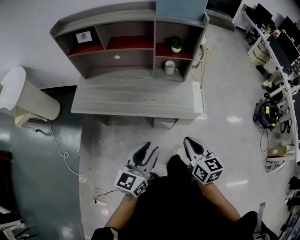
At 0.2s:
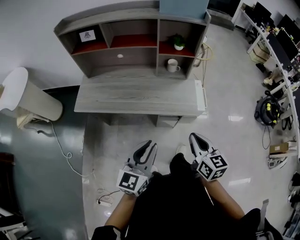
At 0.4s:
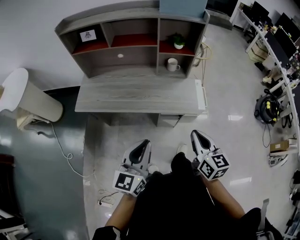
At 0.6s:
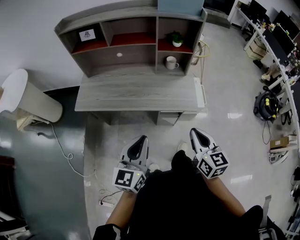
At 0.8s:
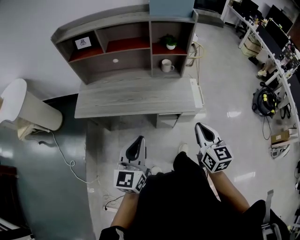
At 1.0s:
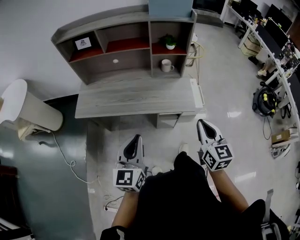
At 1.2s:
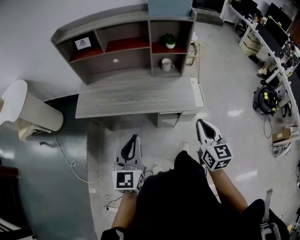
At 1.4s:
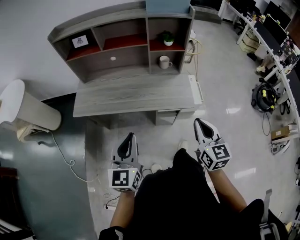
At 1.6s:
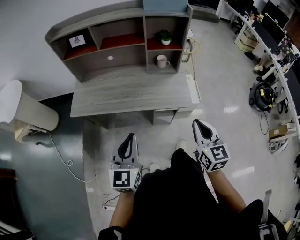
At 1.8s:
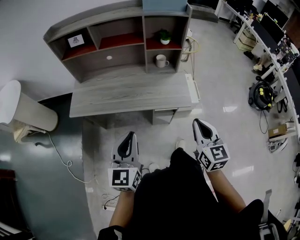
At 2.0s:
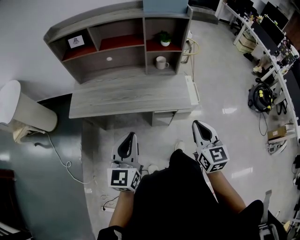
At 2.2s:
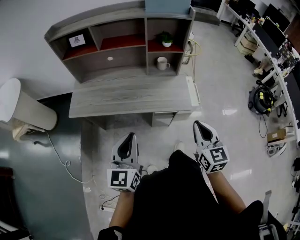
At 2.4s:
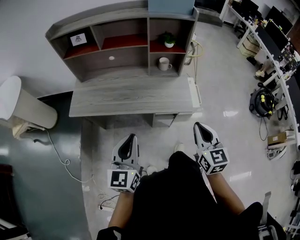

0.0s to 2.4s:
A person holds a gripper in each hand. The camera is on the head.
0.0s to 1.2s: The left gripper shifts some 10 cm to the left, and swivels about 20 degrees.
1.2s to 2.4s: There are only small adjustments of the grippers.

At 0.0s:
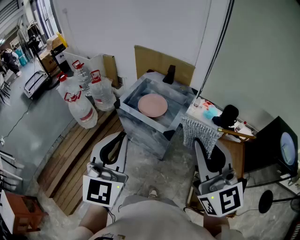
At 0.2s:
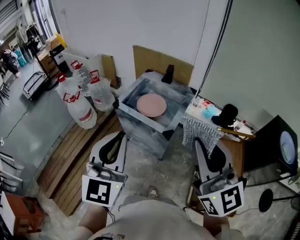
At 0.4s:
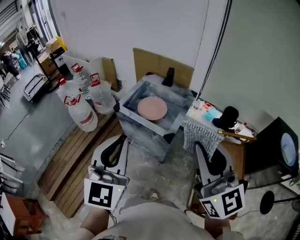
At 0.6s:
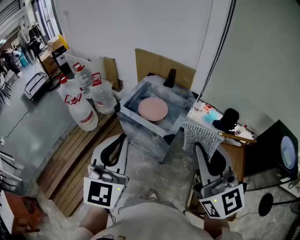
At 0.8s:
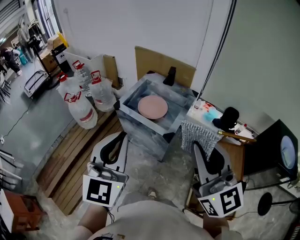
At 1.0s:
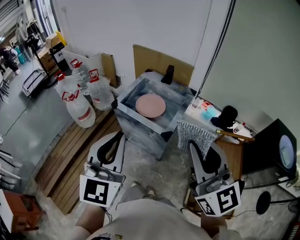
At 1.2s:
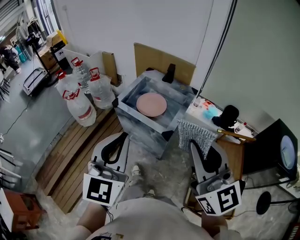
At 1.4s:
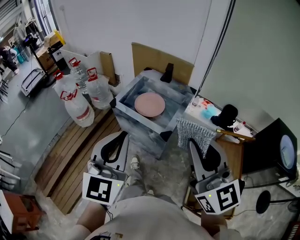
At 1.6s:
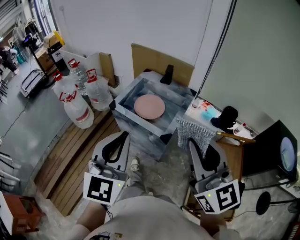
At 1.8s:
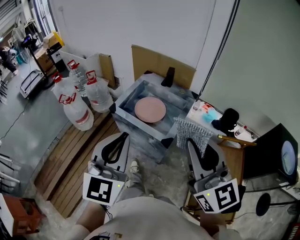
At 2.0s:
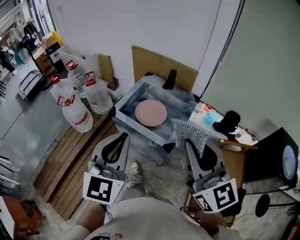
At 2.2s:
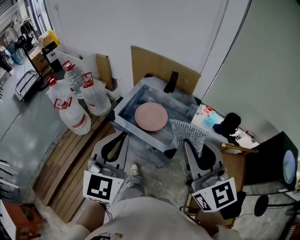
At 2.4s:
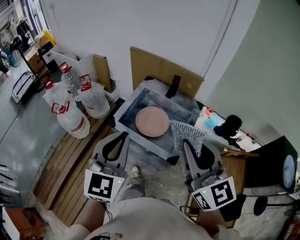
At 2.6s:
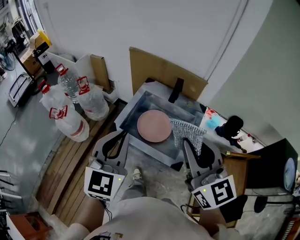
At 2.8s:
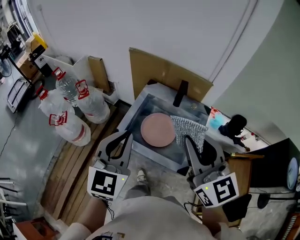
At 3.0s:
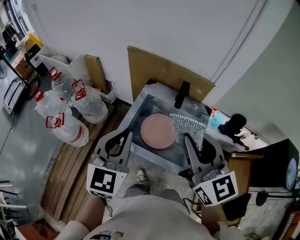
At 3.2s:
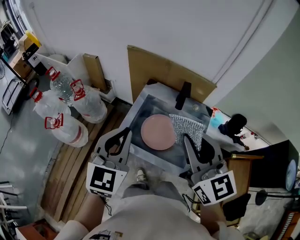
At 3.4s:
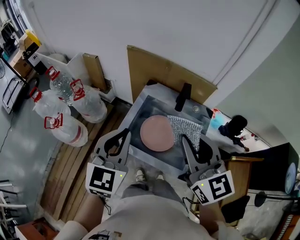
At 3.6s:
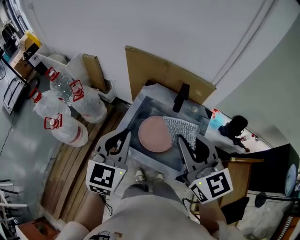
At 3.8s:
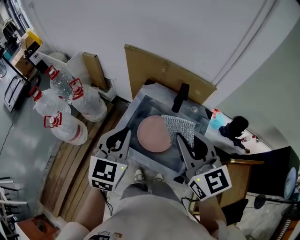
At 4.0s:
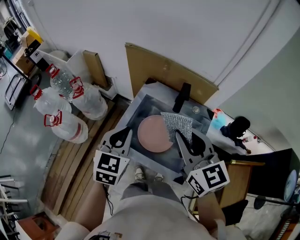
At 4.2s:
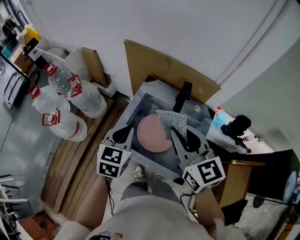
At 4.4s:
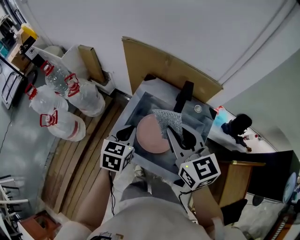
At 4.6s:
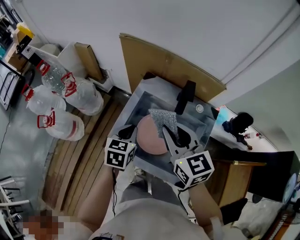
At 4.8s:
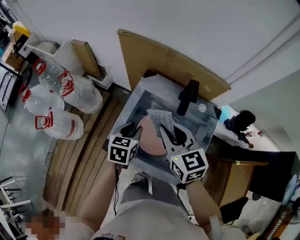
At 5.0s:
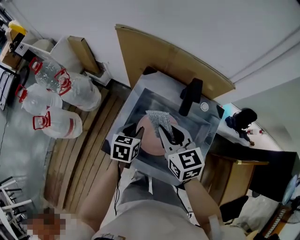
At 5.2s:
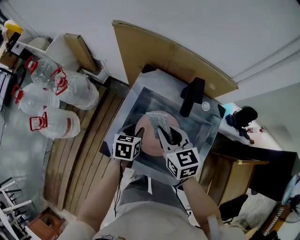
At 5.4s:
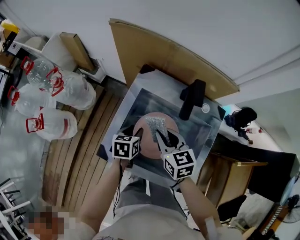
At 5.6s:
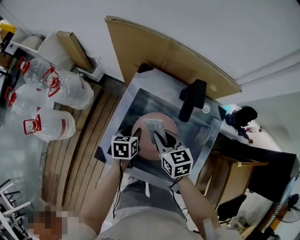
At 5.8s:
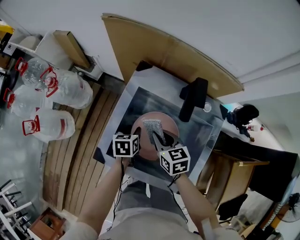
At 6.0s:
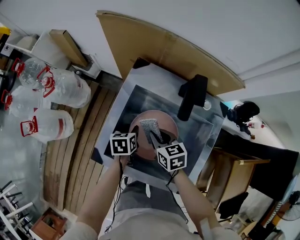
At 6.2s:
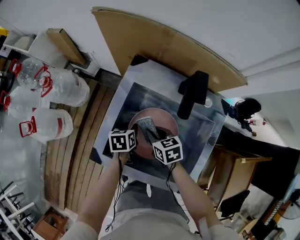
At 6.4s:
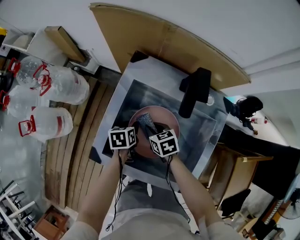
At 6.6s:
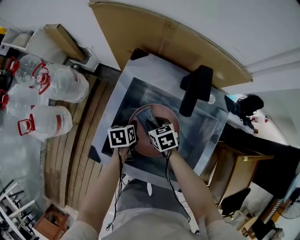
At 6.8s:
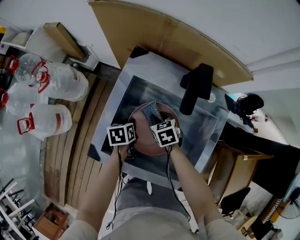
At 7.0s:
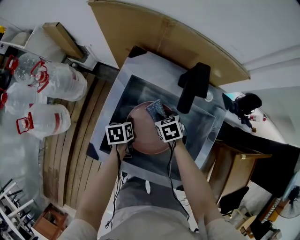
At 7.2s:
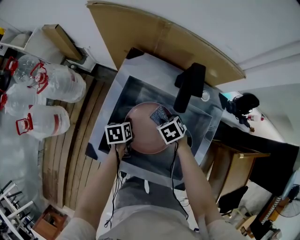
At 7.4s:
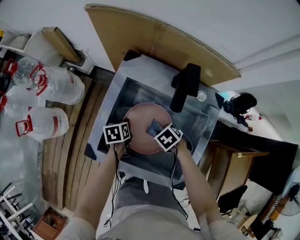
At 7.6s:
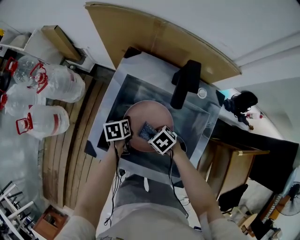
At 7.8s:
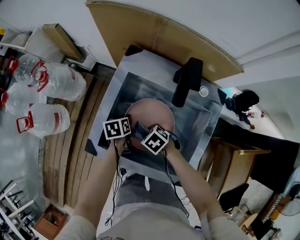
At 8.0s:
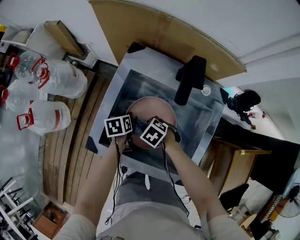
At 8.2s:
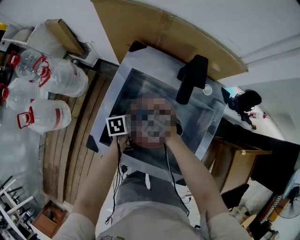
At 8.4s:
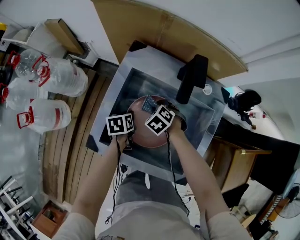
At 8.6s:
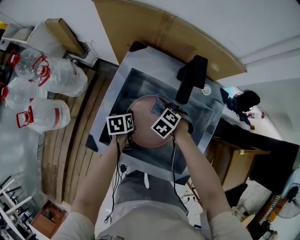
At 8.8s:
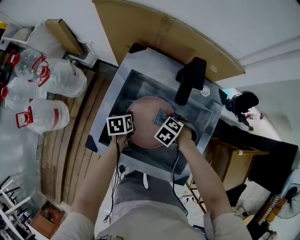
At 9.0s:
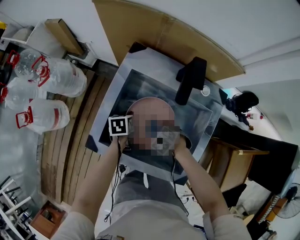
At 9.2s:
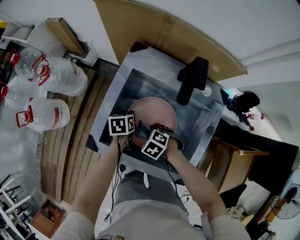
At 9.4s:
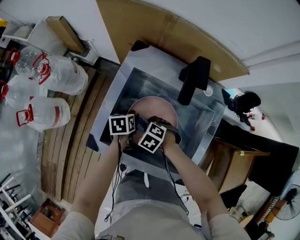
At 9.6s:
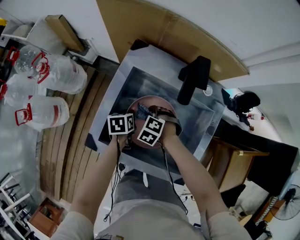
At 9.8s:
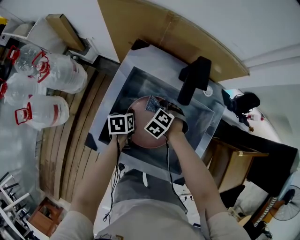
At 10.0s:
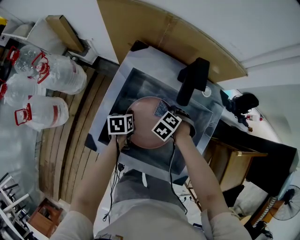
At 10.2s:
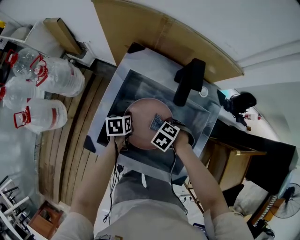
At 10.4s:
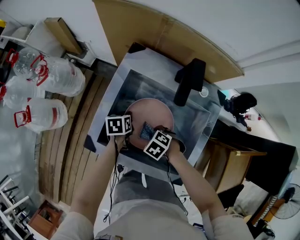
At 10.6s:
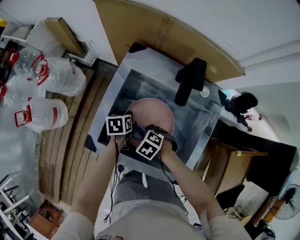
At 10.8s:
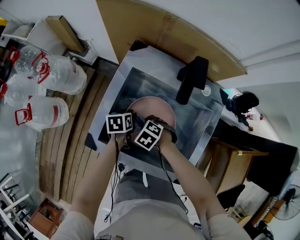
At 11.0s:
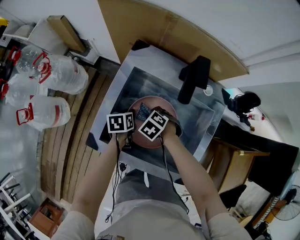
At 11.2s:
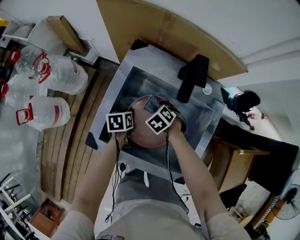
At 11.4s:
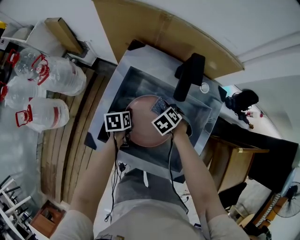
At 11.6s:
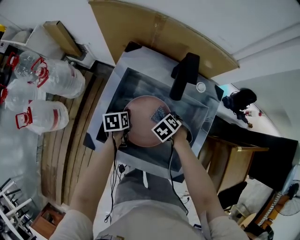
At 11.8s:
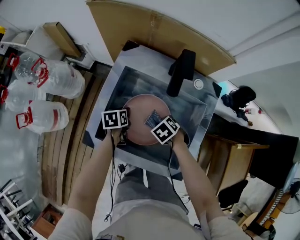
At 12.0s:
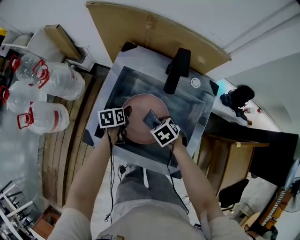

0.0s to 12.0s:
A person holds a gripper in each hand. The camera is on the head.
0.0s to 1.6s: The left gripper shifts by approximately 5 cm; the right gripper shifts by roughly 5 cm.
1.6s to 3.0s: Both grippers travel together forward, some 35 cm.
3.0s to 4.4s: The left gripper heads downward and forward, covering about 25 cm, and changes its angle by about 30 degrees, while the right gripper heads forward and downward, covering about 20 cm.
4.4s to 6.0s: Both grippers travel together downward, approximately 30 cm. The left gripper changes its angle by about 30 degrees, and opens its fingers, while the right gripper changes its angle by some 30 degrees.
6.0s to 7.6s: The left gripper closes its fingers. The right gripper heads downward, covering some 10 cm, and changes its angle by about 40 degrees.
7.6s to 9.0s: The right gripper swivels about 20 degrees.
10.4s to 12.0s: The right gripper swivels roughly 20 degrees, while the left gripper opens its fingers.

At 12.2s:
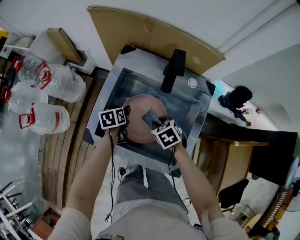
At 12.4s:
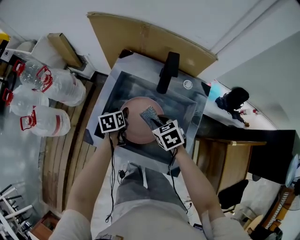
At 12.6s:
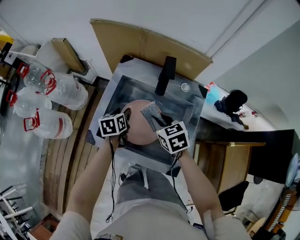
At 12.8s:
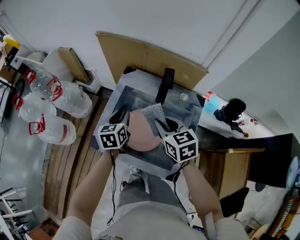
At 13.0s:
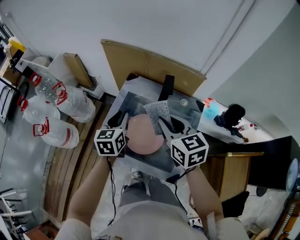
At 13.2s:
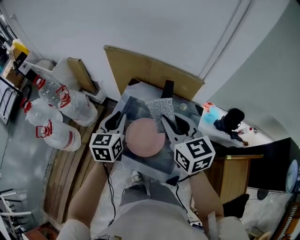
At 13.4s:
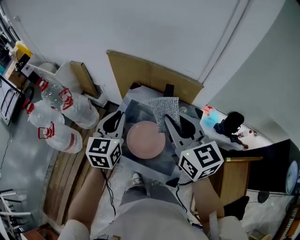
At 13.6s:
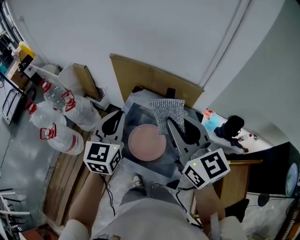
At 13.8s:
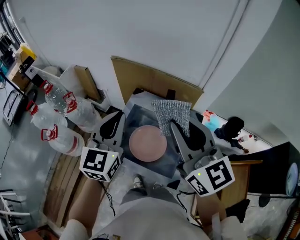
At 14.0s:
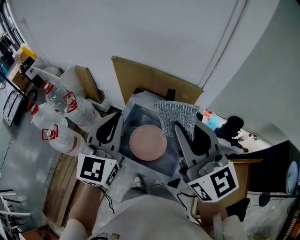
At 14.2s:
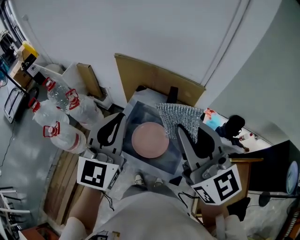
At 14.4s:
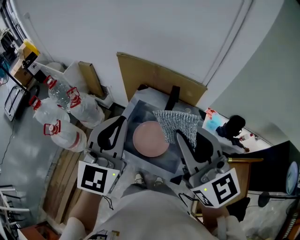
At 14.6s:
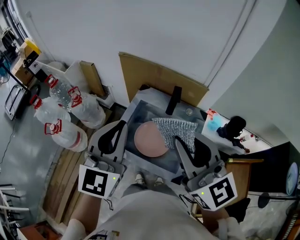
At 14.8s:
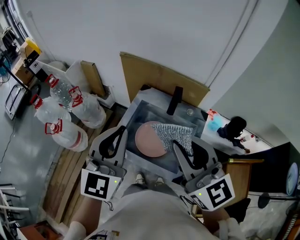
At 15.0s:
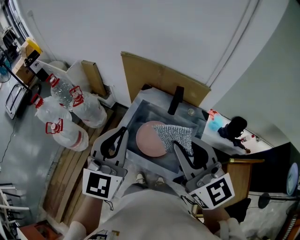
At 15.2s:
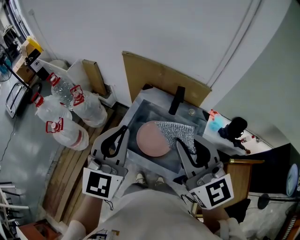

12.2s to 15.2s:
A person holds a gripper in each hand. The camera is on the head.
12.2s to 13.8s: Both grippers move upward, approximately 50 cm. The left gripper tilts its fingers about 50 degrees upward, and closes. Meanwhile the right gripper tips its fingers upward by about 70 degrees.
13.8s to 15.2s: The two grippers go some 10 cm backward.

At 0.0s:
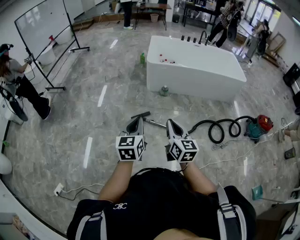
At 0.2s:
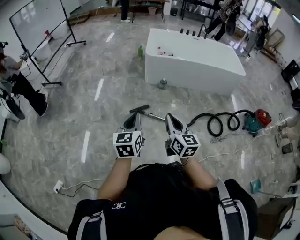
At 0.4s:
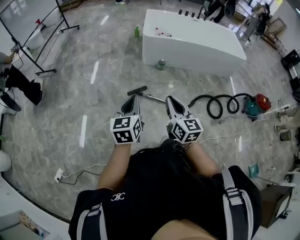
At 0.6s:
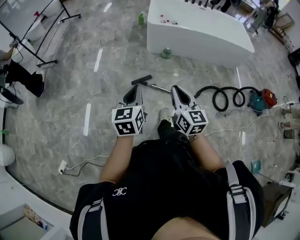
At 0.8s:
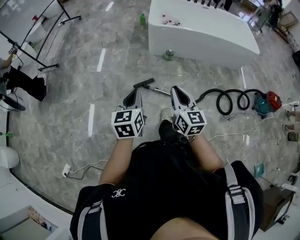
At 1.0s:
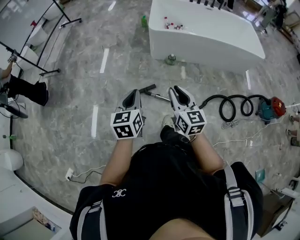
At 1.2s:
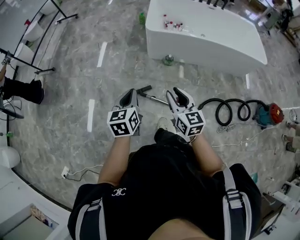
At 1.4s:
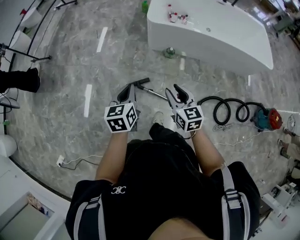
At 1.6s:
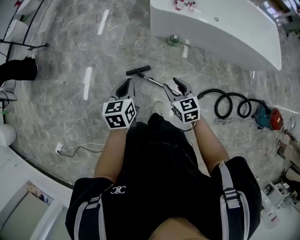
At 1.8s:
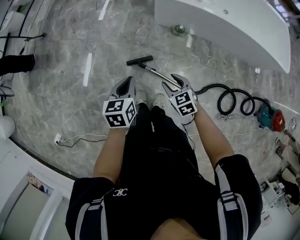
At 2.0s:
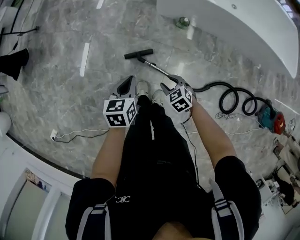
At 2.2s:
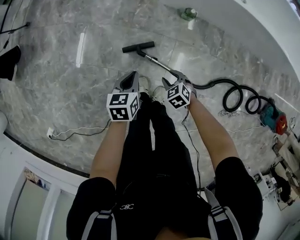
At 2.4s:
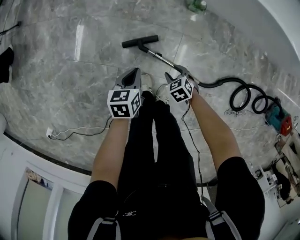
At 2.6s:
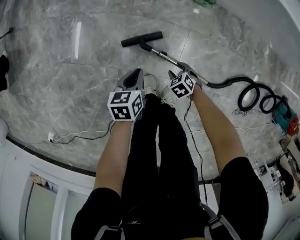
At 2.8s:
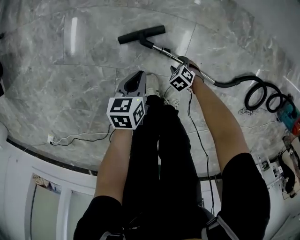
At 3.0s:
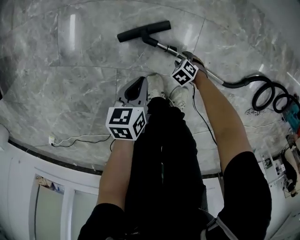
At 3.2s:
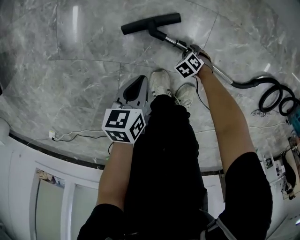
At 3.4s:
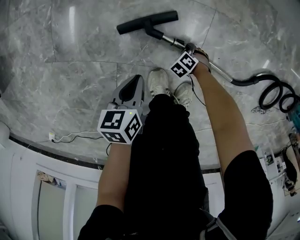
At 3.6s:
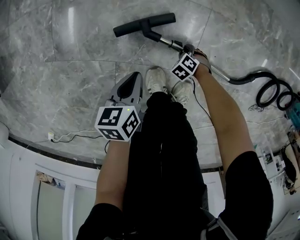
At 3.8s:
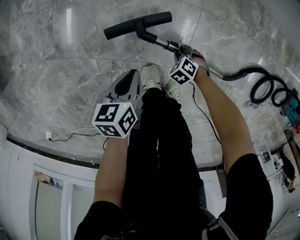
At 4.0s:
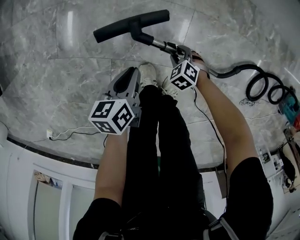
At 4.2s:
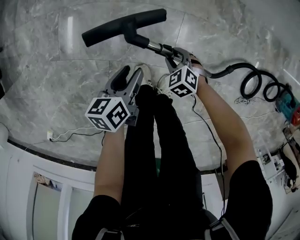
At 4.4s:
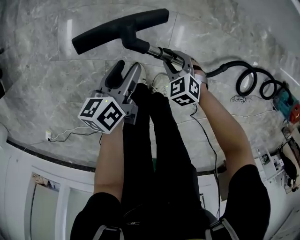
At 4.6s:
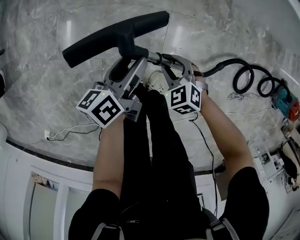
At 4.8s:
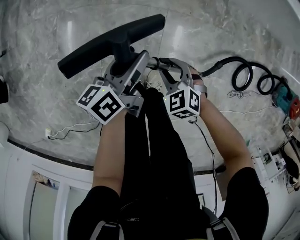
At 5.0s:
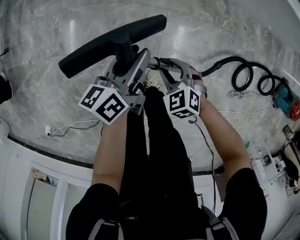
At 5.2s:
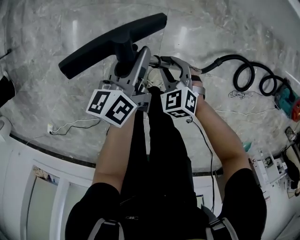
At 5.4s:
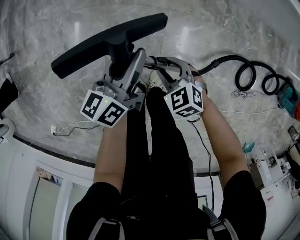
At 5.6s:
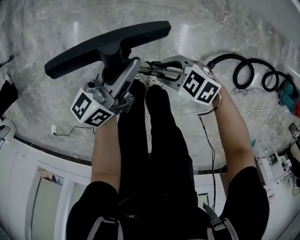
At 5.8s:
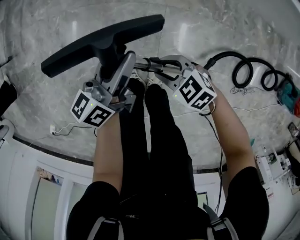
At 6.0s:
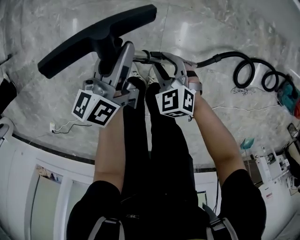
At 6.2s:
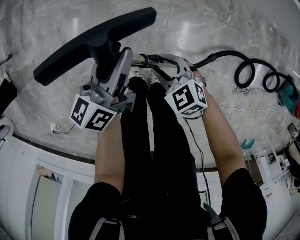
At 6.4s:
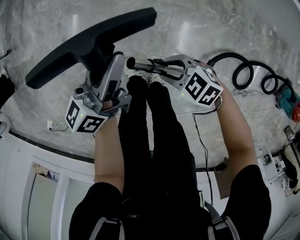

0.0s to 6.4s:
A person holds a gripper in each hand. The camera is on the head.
0.0s to 1.6s: The grippers both shift forward and downward by roughly 40 cm. The left gripper changes its angle by some 20 degrees, while the right gripper rotates approximately 40 degrees, and opens up.
1.6s to 3.2s: Both grippers travel together downward, roughly 70 cm. The right gripper tips its fingers downward by approximately 50 degrees. The left gripper rotates some 30 degrees.
3.2s to 4.8s: The right gripper travels upward by some 40 cm, and angles its fingers upward, by approximately 30 degrees. Meanwhile the left gripper travels upward by roughly 30 cm, tilts its fingers roughly 30 degrees upward, and opens up.
4.8s to 6.4s: The right gripper moves about 5 cm, and turns by approximately 30 degrees. The left gripper is displaced upward by roughly 10 cm, and swivels some 20 degrees.
